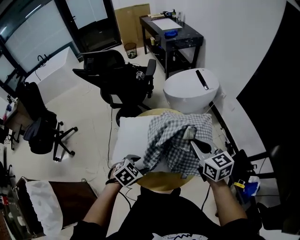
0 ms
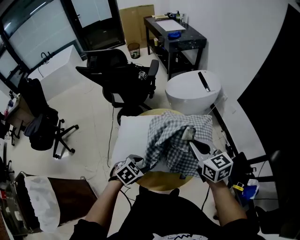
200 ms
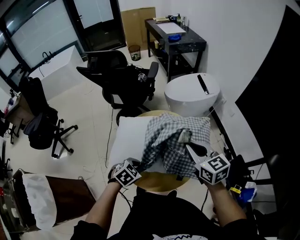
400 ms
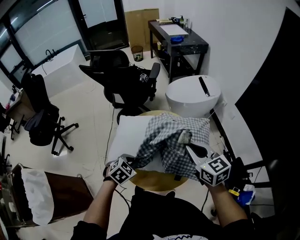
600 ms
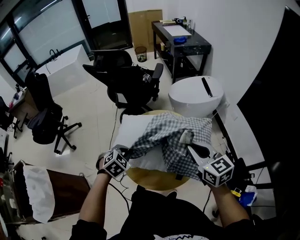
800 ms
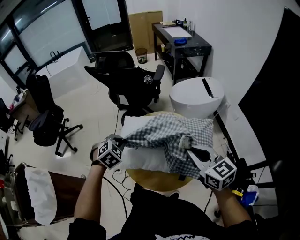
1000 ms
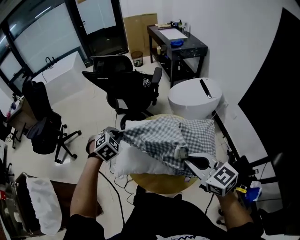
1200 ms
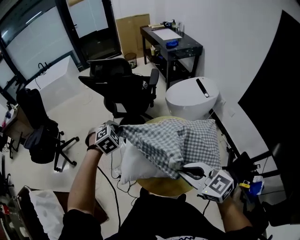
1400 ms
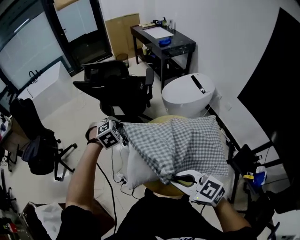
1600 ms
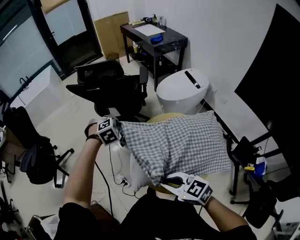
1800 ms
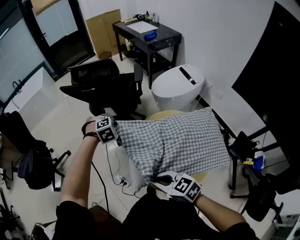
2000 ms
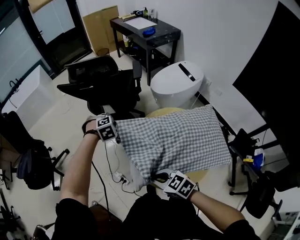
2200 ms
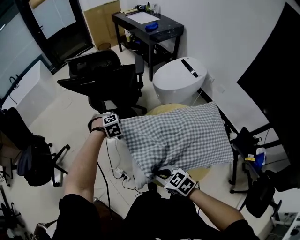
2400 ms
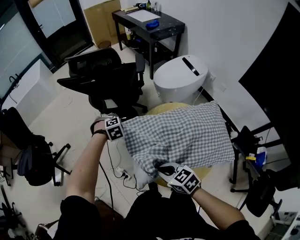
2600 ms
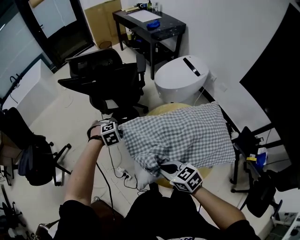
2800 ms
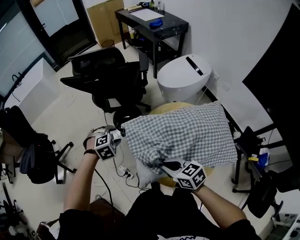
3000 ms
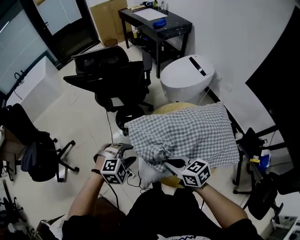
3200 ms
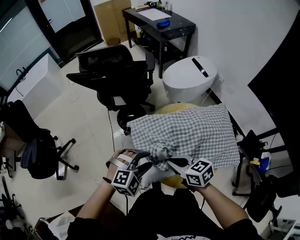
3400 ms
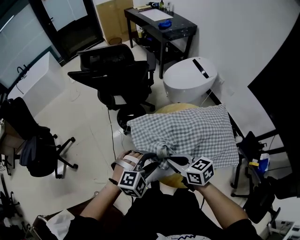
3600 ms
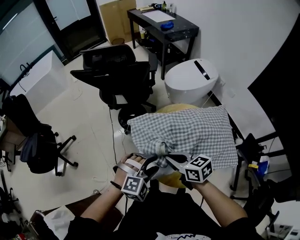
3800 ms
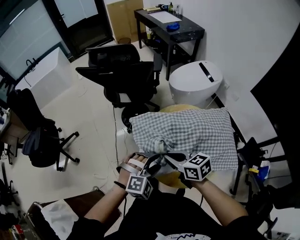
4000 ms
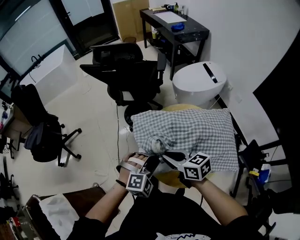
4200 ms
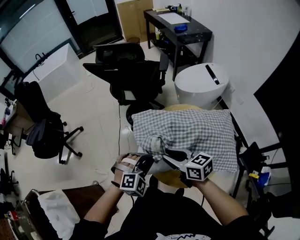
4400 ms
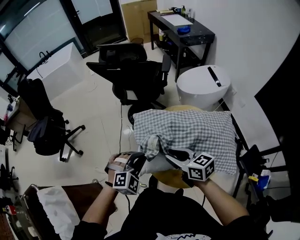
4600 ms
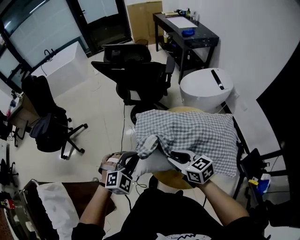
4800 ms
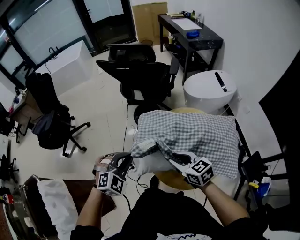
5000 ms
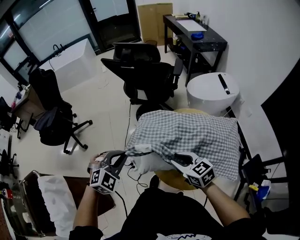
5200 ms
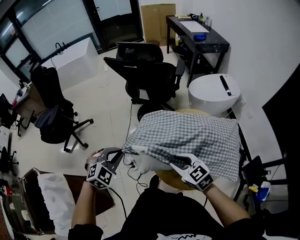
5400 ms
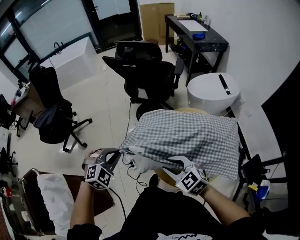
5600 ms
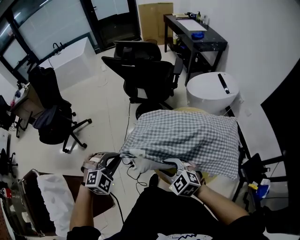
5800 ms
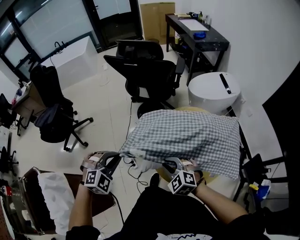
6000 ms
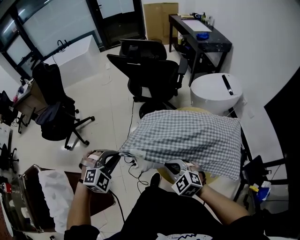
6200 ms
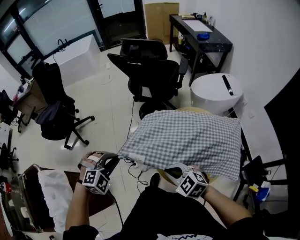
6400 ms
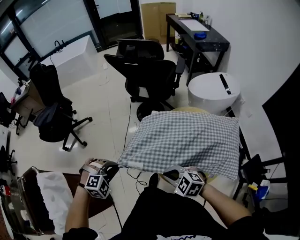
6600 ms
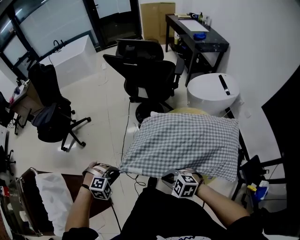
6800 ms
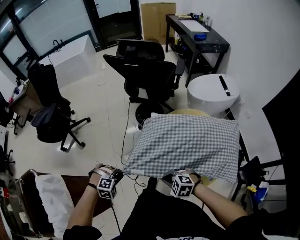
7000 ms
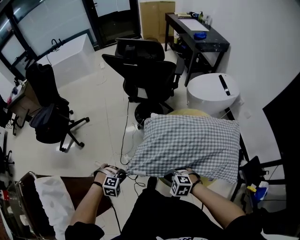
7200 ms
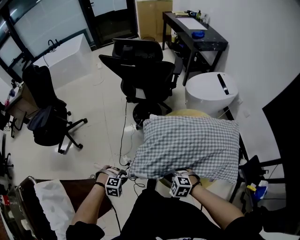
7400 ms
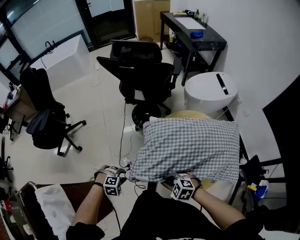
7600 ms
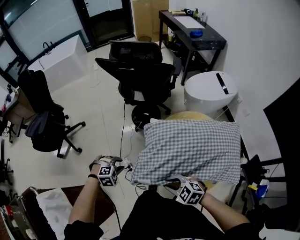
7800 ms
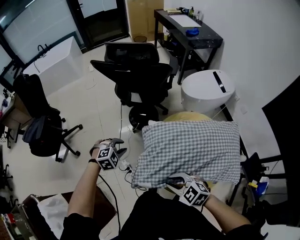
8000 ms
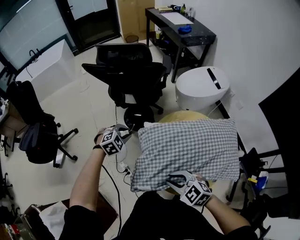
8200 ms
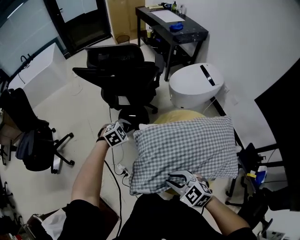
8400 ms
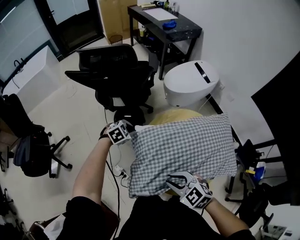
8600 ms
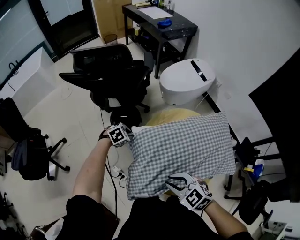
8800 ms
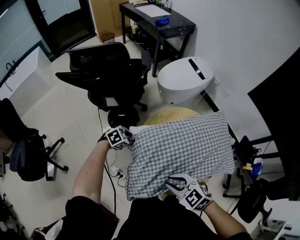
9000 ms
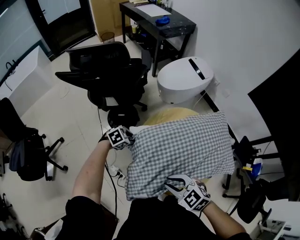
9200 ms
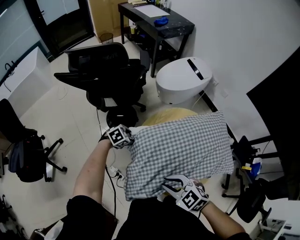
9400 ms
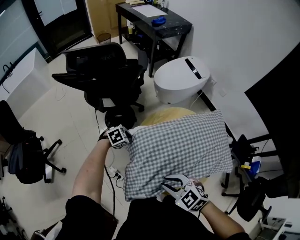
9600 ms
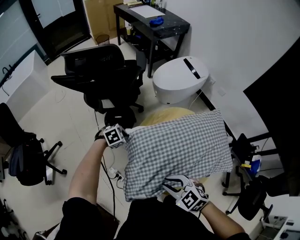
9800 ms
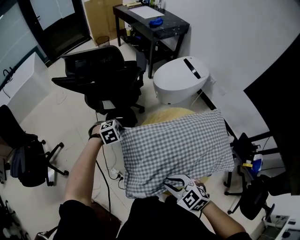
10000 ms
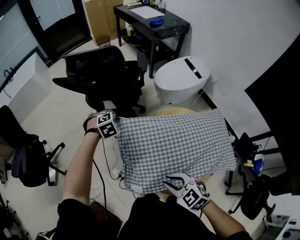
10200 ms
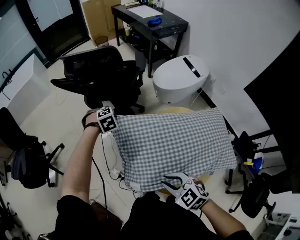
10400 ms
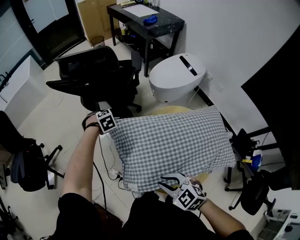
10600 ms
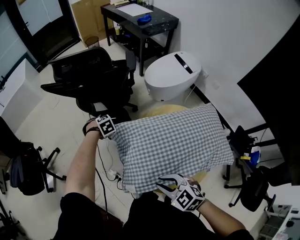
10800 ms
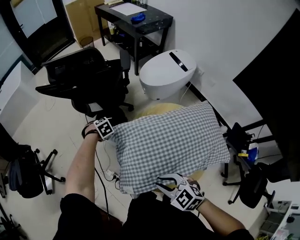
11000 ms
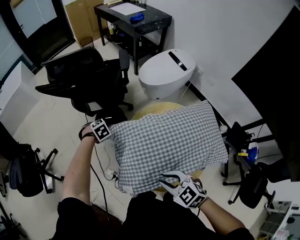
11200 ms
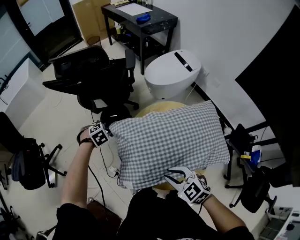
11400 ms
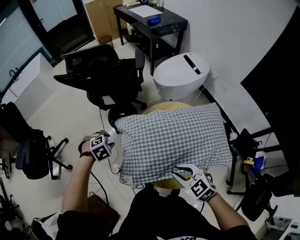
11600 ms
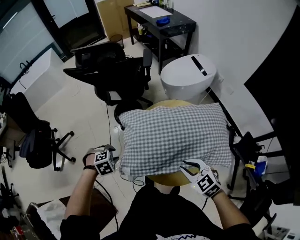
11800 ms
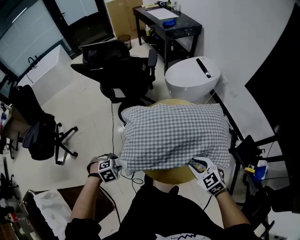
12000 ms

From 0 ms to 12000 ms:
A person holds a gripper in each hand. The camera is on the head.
From 0 ms to 1600 ms: The left gripper moves about 30 cm, turns by roughly 30 degrees, and closes. Meanwhile the right gripper ends up some 25 cm from where it was, and swivels about 30 degrees.
From 1600 ms to 3000 ms: The right gripper heads downward, forward and to the left, covering roughly 15 cm, and changes its angle by about 30 degrees. Meanwhile the left gripper shifts about 15 cm downward and to the left, and opens up.
From 3000 ms to 4400 ms: The left gripper travels backward and to the right by approximately 25 cm, turns by some 20 degrees, and closes up. Meanwhile the right gripper goes about 5 cm upward, and opens up.
From 4400 ms to 6000 ms: The left gripper heads to the left, covering roughly 20 cm. Meanwhile the right gripper travels downward, backward and to the left by about 10 cm, and rolls counterclockwise, seen from behind, by approximately 60 degrees.
From 6000 ms to 7600 ms: The right gripper travels downward by roughly 10 cm, and swivels approximately 20 degrees. The left gripper goes about 25 cm downward, rotates about 40 degrees, and opens its fingers.
From 7600 ms to 9000 ms: The right gripper heads upward, covering some 10 cm, and rotates approximately 30 degrees; the left gripper travels upward and back again, some 10 cm each way, and swivels some 30 degrees.
From 9000 ms to 10400 ms: The left gripper changes place by some 15 cm, changes its angle by some 30 degrees, and closes its fingers.
From 10400 ms to 12000 ms: The left gripper goes downward and returns, some 10 cm each way, and opens; the right gripper shifts by approximately 20 cm.

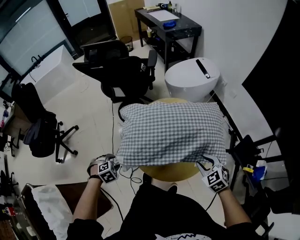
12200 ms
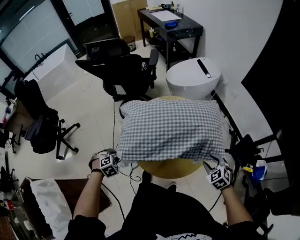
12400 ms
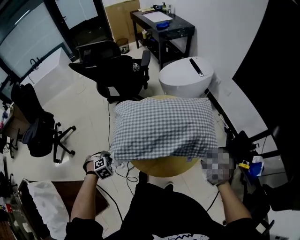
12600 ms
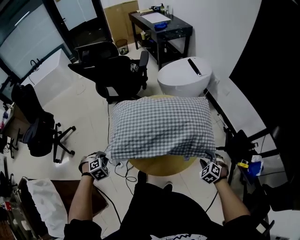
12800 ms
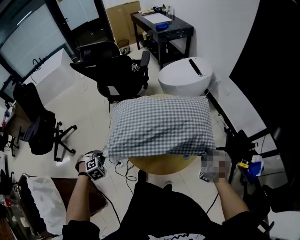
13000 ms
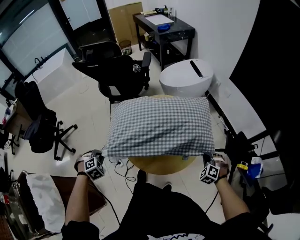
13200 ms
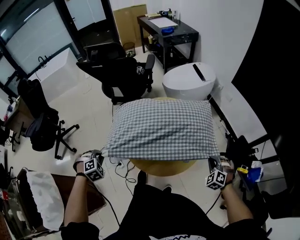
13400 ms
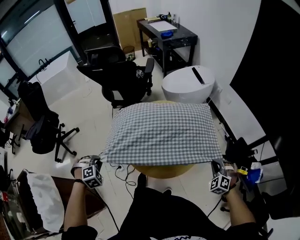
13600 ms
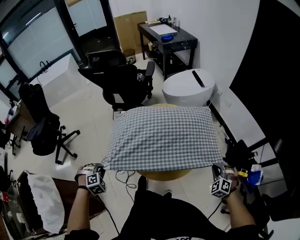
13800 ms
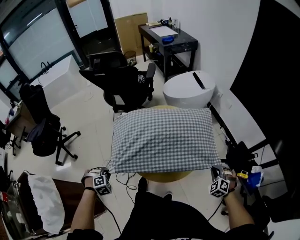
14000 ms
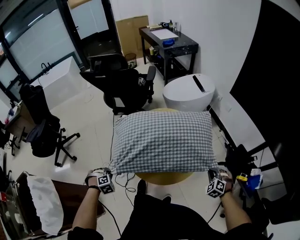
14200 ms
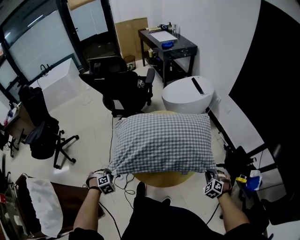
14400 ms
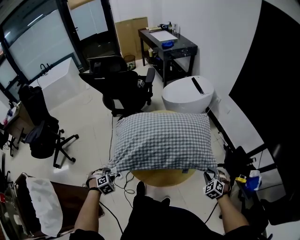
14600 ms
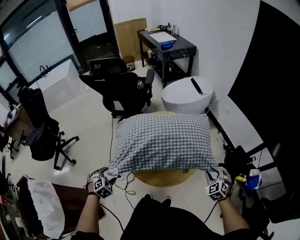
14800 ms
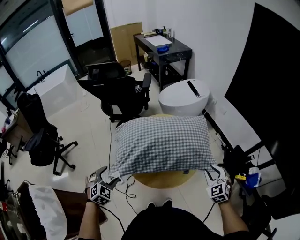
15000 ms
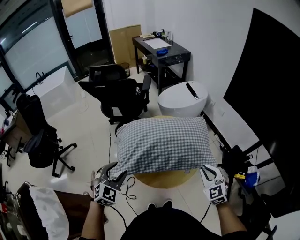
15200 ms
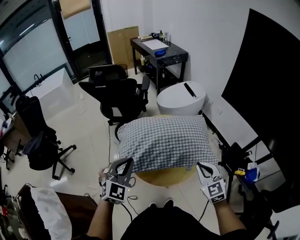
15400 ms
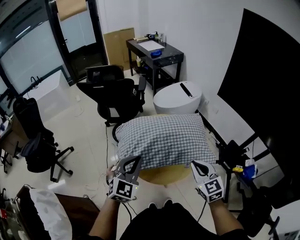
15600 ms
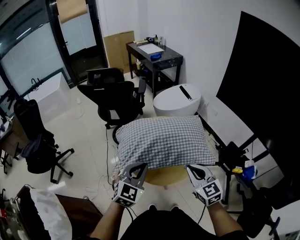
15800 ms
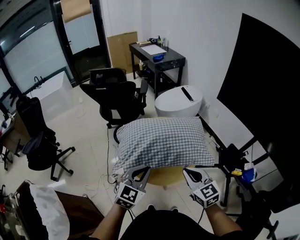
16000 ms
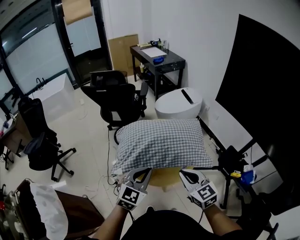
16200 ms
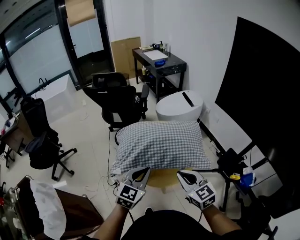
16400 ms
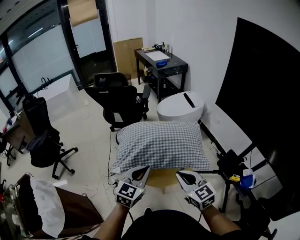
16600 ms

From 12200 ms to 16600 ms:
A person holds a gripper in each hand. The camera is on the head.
From 12200 ms to 13600 ms: The left gripper travels upward by approximately 10 cm, and closes its fingers. The right gripper moves roughly 10 cm downward and comes back, changes its angle by roughly 30 degrees, and closes.
From 13600 ms to 15200 ms: The right gripper heads upward and to the left, covering approximately 15 cm, and changes its angle by about 40 degrees. Meanwhile the left gripper shifts roughly 15 cm upward and to the right, tips its fingers upward by some 30 degrees, and opens.
From 15200 ms to 16600 ms: The right gripper is displaced to the left, upward and backward by about 15 cm, and changes its angle by some 30 degrees, while the left gripper travels to the right by some 15 cm, rotates approximately 30 degrees, and closes up.

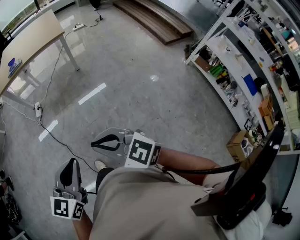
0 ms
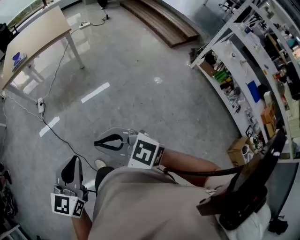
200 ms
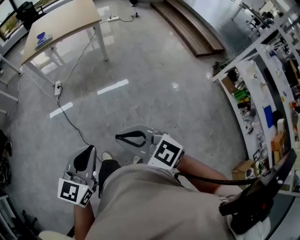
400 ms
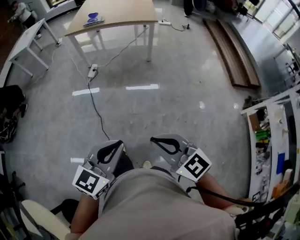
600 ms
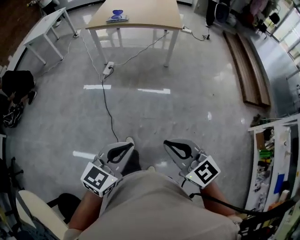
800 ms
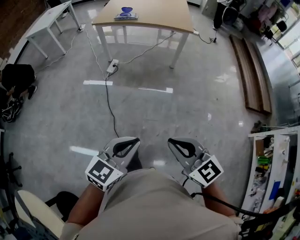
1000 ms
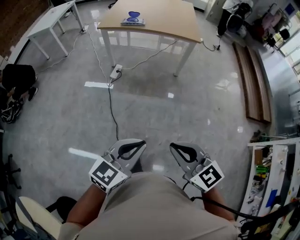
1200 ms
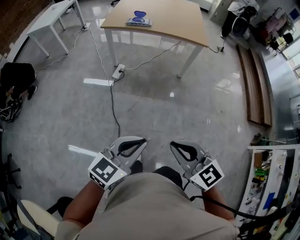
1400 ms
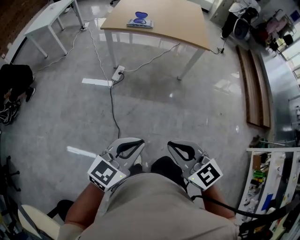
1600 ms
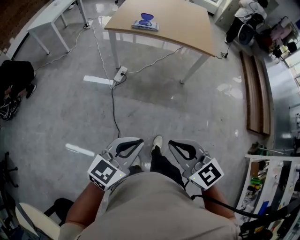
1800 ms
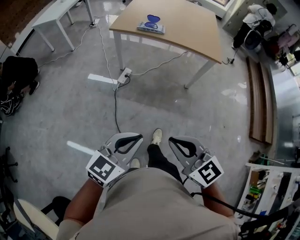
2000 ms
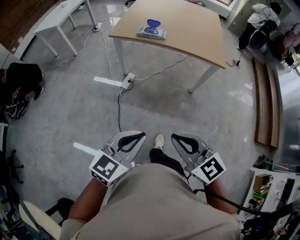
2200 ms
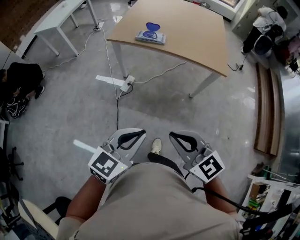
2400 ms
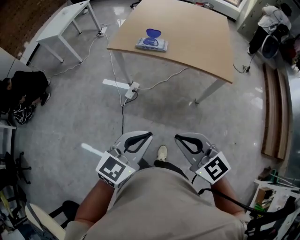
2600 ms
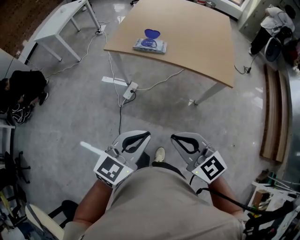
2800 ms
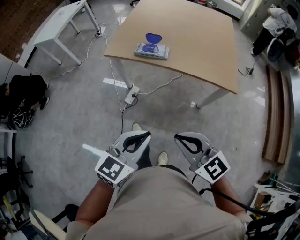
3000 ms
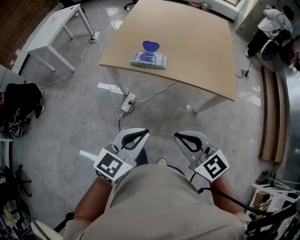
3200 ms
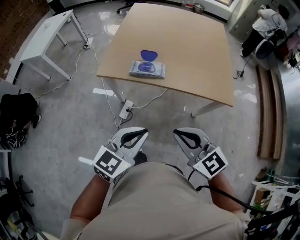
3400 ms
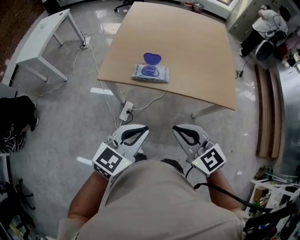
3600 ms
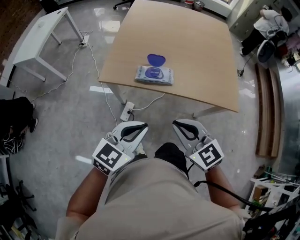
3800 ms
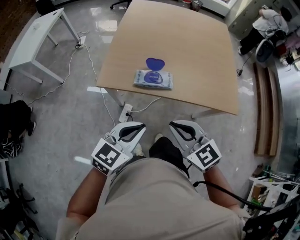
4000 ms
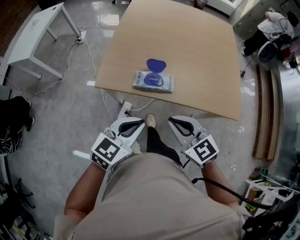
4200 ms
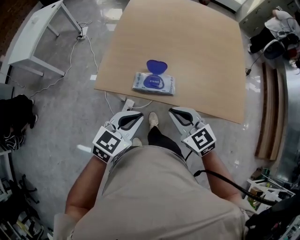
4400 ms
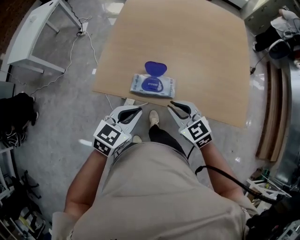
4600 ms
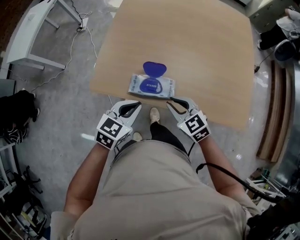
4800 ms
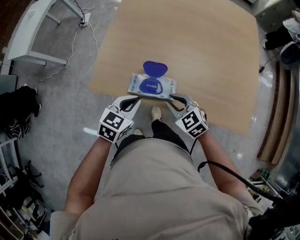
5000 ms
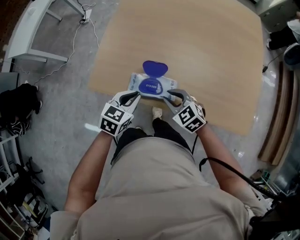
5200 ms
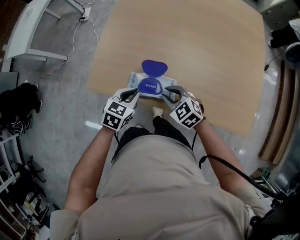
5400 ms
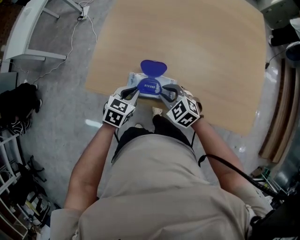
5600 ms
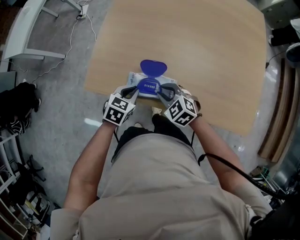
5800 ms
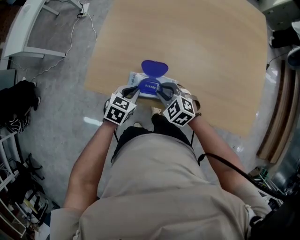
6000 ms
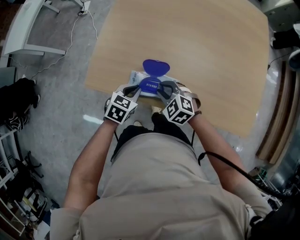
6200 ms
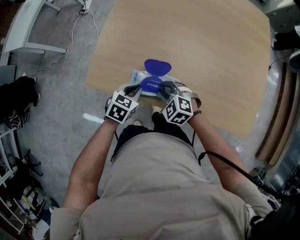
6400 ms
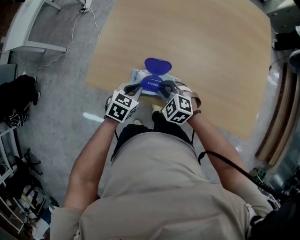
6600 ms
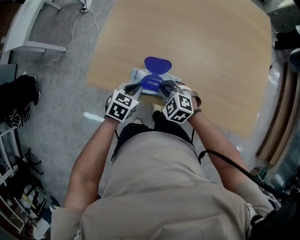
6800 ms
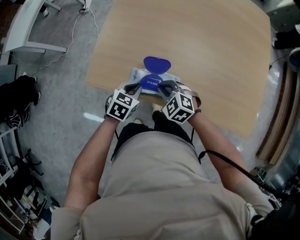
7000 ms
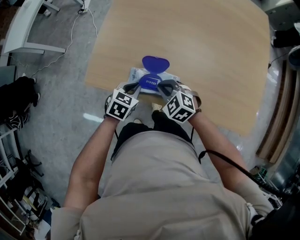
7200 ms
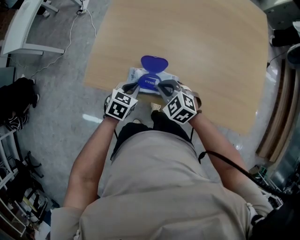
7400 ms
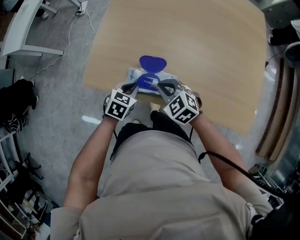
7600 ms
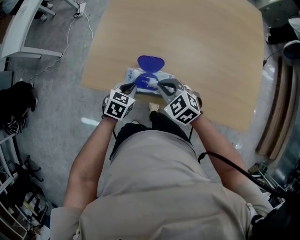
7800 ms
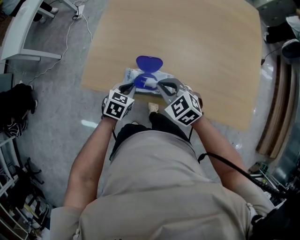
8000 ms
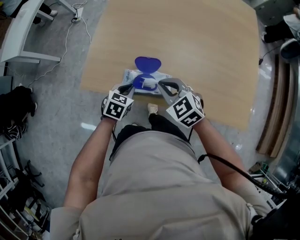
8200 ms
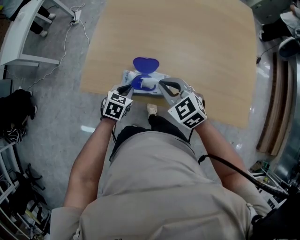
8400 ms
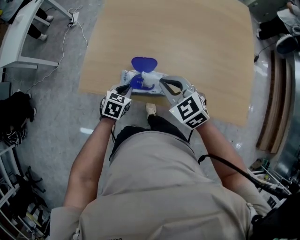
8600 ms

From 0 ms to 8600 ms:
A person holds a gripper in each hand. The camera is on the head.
From 0 ms to 1400 ms: The grippers both shift forward and to the left by about 40 cm.
From 1400 ms to 2800 ms: The pair of grippers is taken forward, roughly 50 cm.
From 2800 ms to 4400 ms: The pair of grippers is taken forward, roughly 50 cm.
From 4400 ms to 5800 ms: Both grippers travel together downward and forward, roughly 30 cm. The right gripper changes its angle by some 30 degrees. Meanwhile the left gripper changes its angle by approximately 30 degrees.
From 5800 ms to 7200 ms: The grippers stay close to where they were, moving slightly.
From 7200 ms to 8600 ms: The right gripper is displaced upward by about 15 cm.
